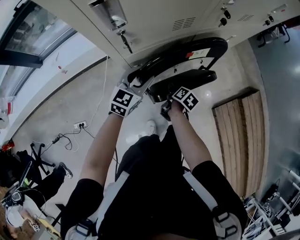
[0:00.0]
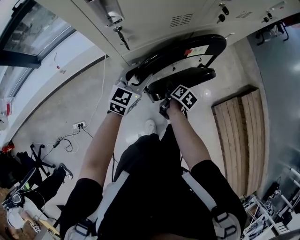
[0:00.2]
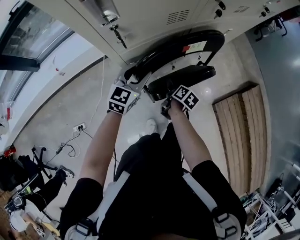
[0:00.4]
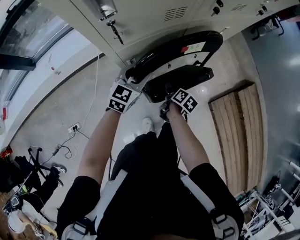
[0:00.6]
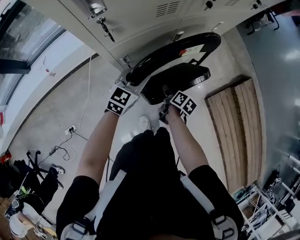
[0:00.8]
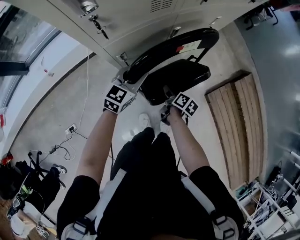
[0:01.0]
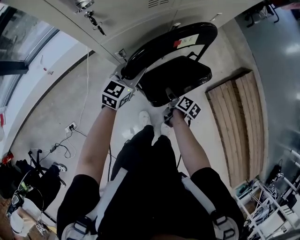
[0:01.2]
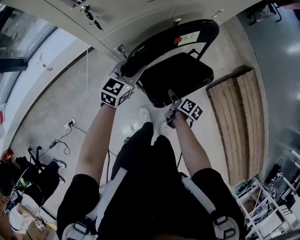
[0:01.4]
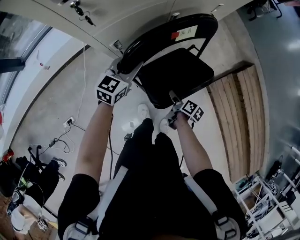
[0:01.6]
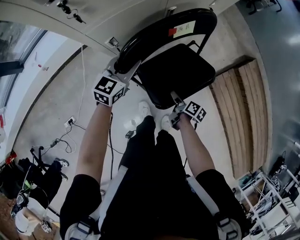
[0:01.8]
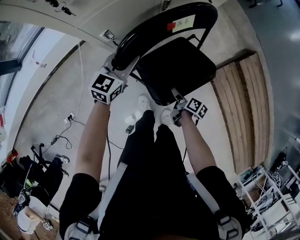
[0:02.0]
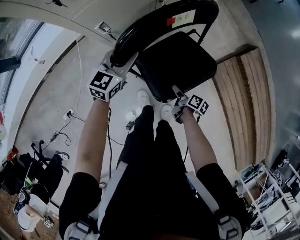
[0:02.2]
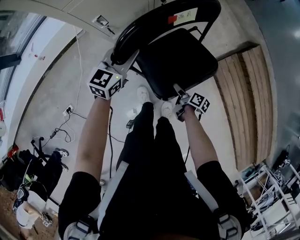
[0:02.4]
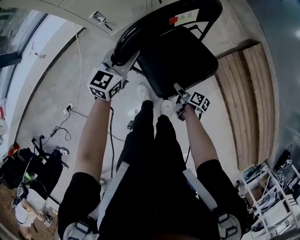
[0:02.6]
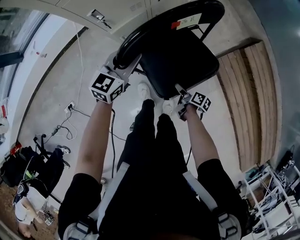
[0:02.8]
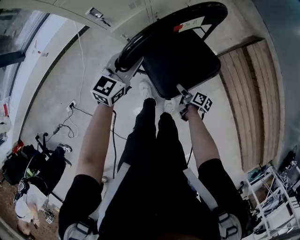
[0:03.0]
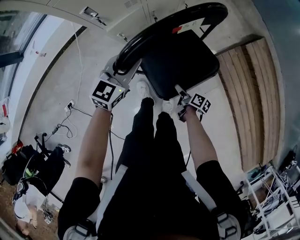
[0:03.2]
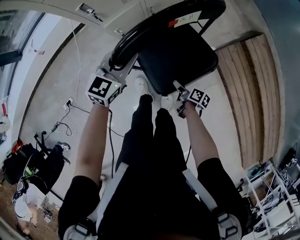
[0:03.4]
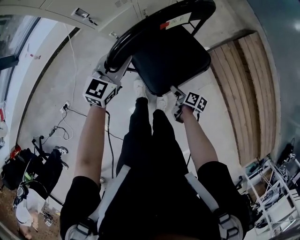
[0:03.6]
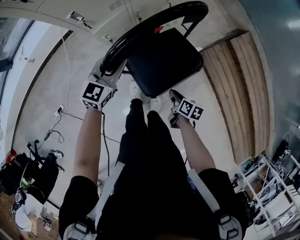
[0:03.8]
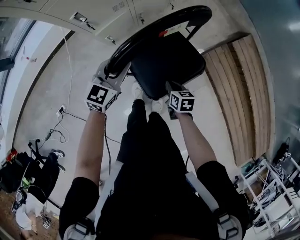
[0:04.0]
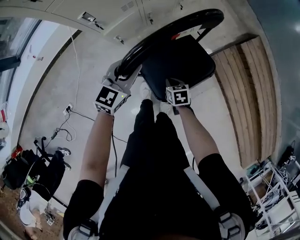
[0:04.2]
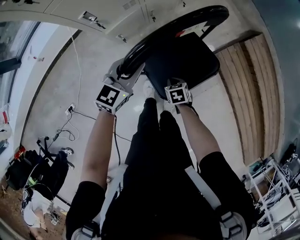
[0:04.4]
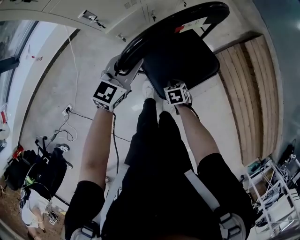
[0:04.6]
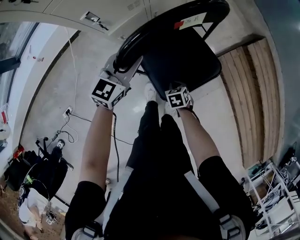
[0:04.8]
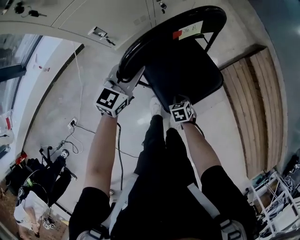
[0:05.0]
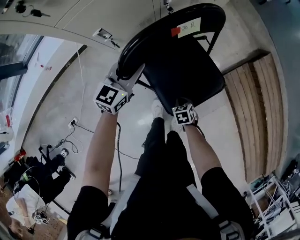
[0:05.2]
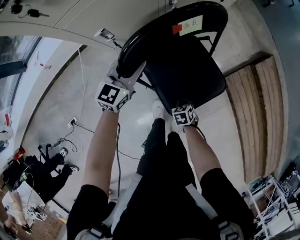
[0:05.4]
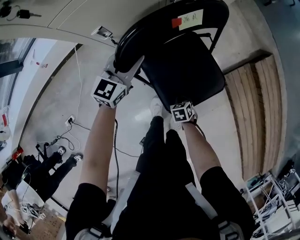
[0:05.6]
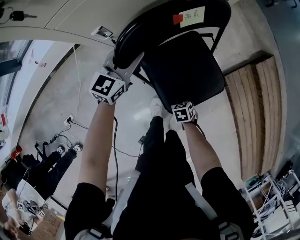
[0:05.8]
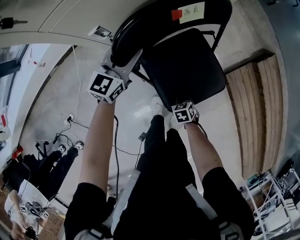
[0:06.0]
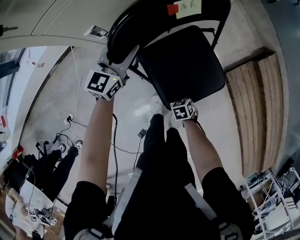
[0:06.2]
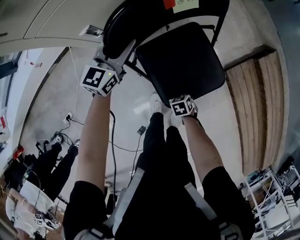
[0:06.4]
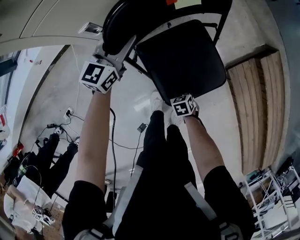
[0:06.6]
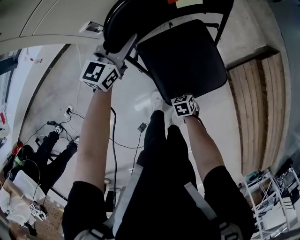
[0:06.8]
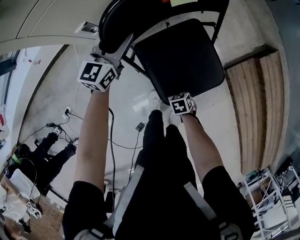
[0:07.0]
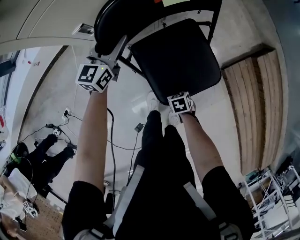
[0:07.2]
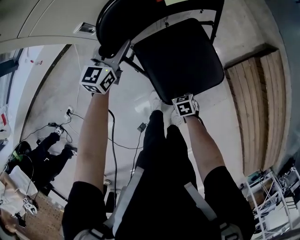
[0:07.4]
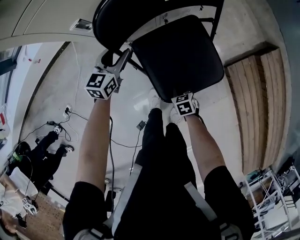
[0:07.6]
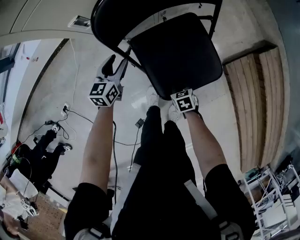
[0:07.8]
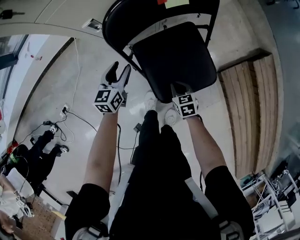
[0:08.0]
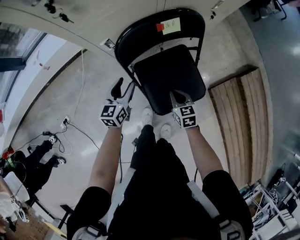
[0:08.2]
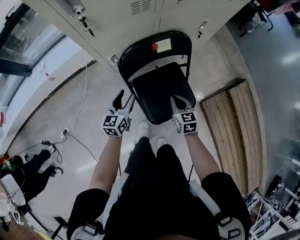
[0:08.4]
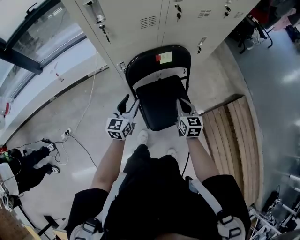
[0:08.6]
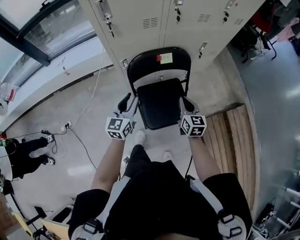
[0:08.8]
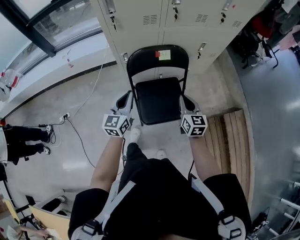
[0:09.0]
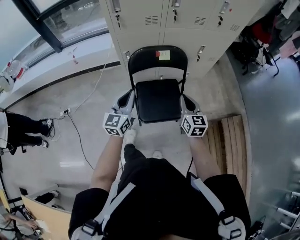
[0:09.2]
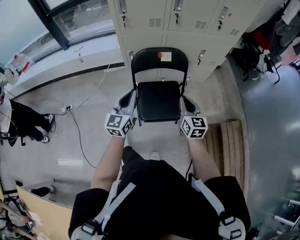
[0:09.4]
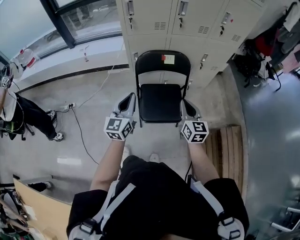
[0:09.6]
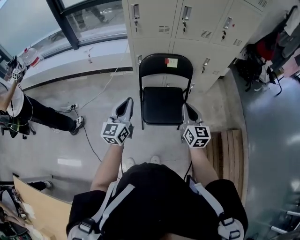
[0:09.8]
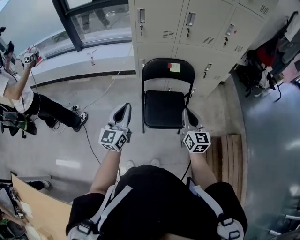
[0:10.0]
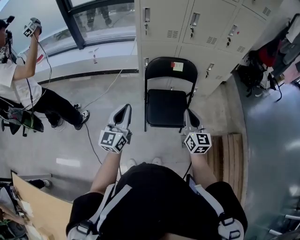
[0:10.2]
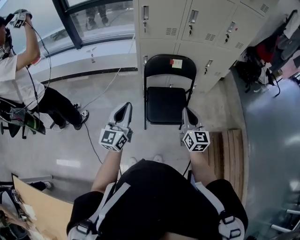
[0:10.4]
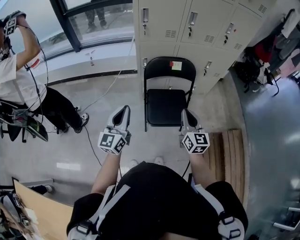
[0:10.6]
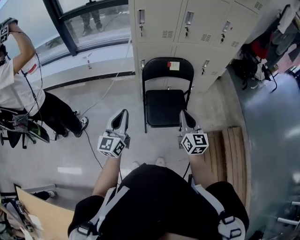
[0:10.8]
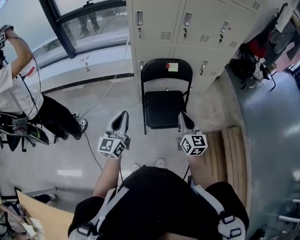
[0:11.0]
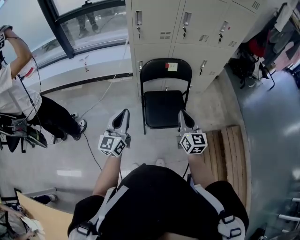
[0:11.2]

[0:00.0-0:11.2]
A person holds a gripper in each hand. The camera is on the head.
0:00.0 to 0:01.6: The right gripper moves backward, to the right and downward, roughly 20 cm. The left gripper goes roughly 5 cm to the right.
0:01.6 to 0:03.2: The right gripper travels backward, downward and to the right by roughly 20 cm; the left gripper goes about 15 cm backward and to the right.
0:03.2 to 0:04.8: The right gripper travels to the left and forward by approximately 10 cm, rotates around the line of its fingers by about 70 degrees, counterclockwise from behind, and closes its fingers; the left gripper ends up some 5 cm from where it was.
0:04.8 to 0:06.4: The left gripper changes place by approximately 20 cm. The right gripper travels downward by approximately 10 cm.
0:06.4 to 0:08.0: The left gripper shifts by about 15 cm, and turns by about 30 degrees, while the right gripper heads upward, covering about 5 cm, and rotates about 20 degrees.
0:08.0 to 0:09.6: The right gripper travels upward by about 50 cm, and points its fingers some 40 degrees further upward. Meanwhile the left gripper heads upward and backward, covering some 50 cm, turns by approximately 40 degrees, and closes up.
0:09.6 to 0:11.2: The two grippers go about 10 cm to the left and backward.

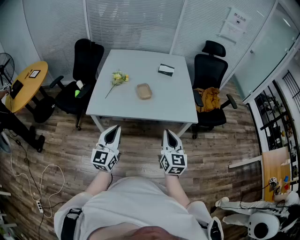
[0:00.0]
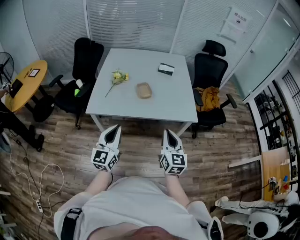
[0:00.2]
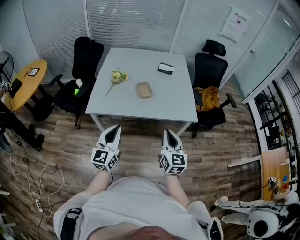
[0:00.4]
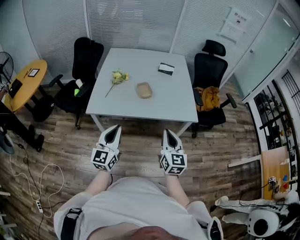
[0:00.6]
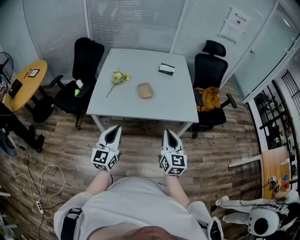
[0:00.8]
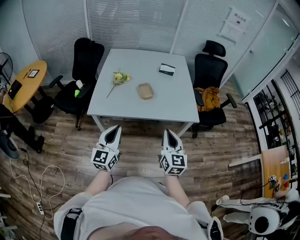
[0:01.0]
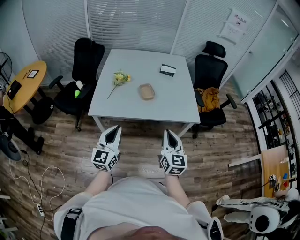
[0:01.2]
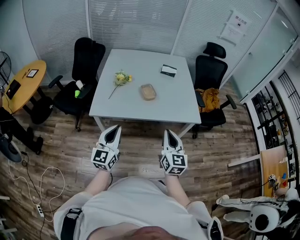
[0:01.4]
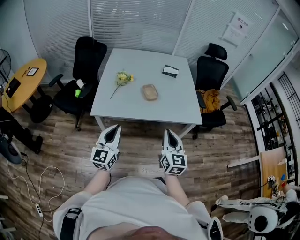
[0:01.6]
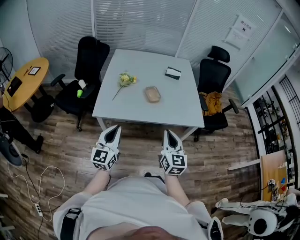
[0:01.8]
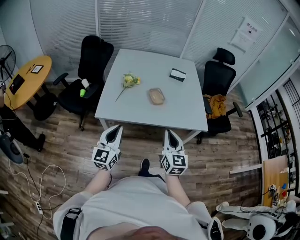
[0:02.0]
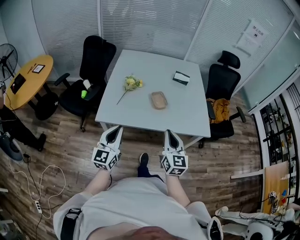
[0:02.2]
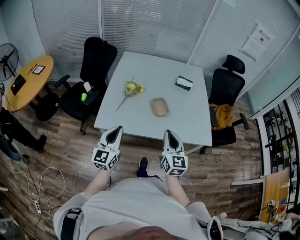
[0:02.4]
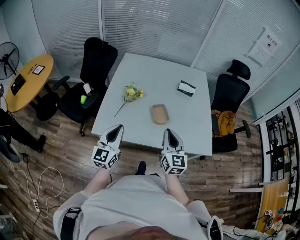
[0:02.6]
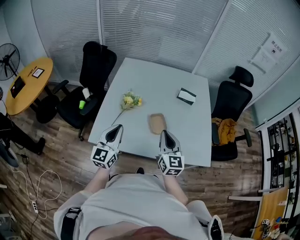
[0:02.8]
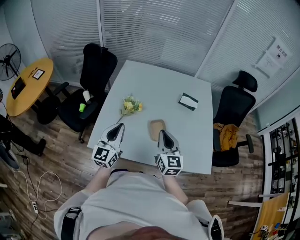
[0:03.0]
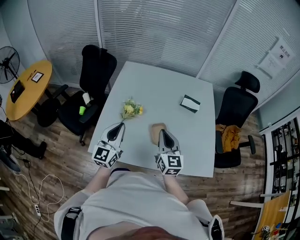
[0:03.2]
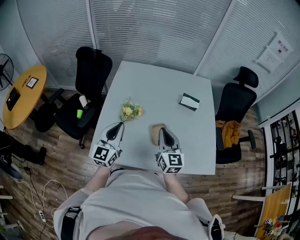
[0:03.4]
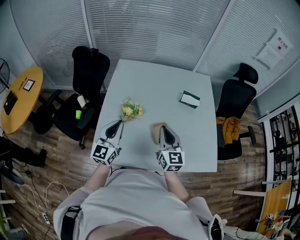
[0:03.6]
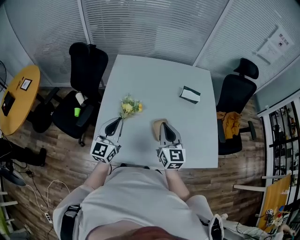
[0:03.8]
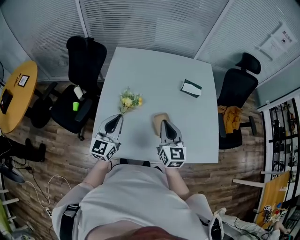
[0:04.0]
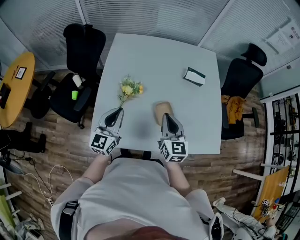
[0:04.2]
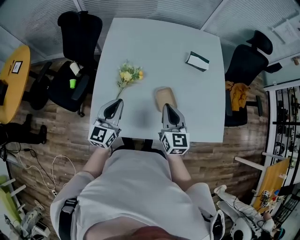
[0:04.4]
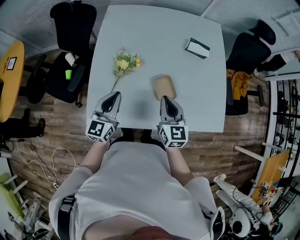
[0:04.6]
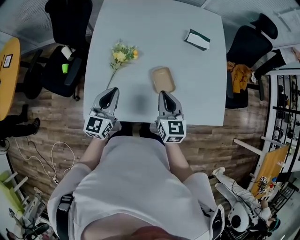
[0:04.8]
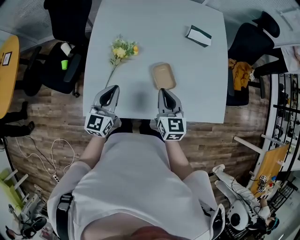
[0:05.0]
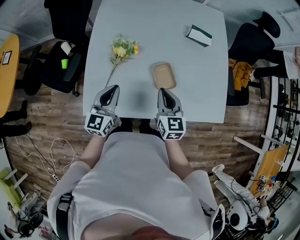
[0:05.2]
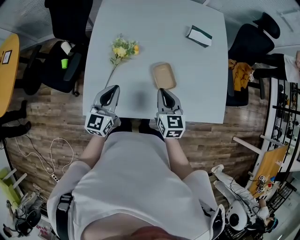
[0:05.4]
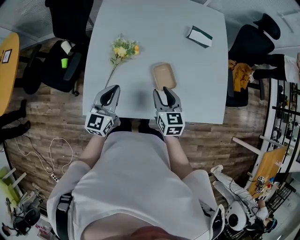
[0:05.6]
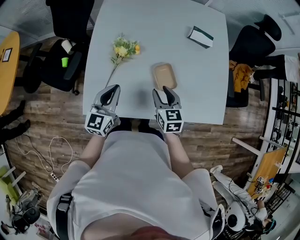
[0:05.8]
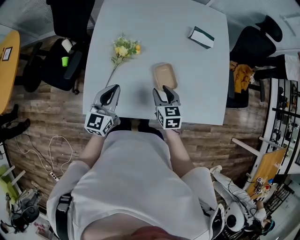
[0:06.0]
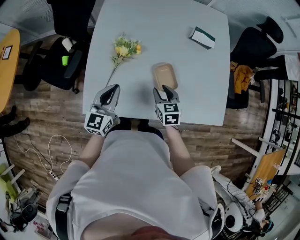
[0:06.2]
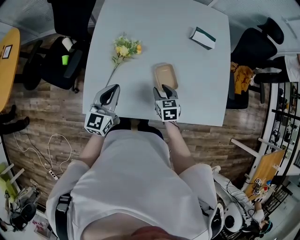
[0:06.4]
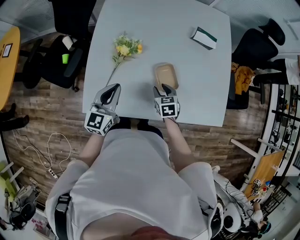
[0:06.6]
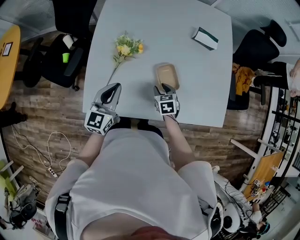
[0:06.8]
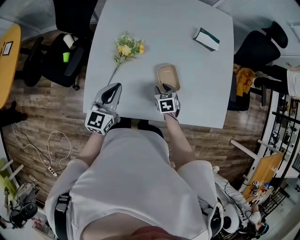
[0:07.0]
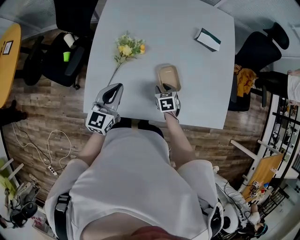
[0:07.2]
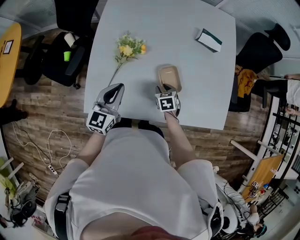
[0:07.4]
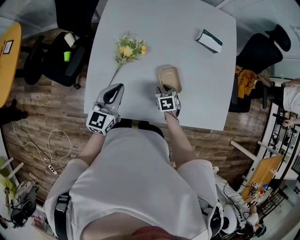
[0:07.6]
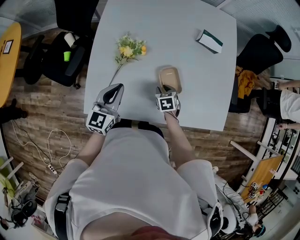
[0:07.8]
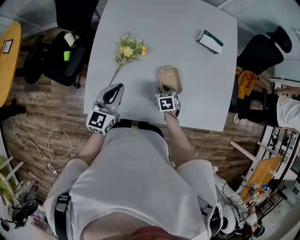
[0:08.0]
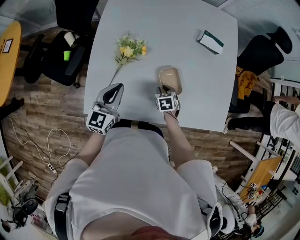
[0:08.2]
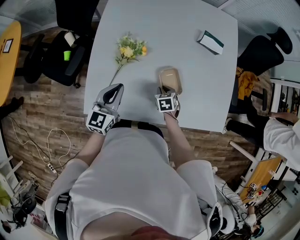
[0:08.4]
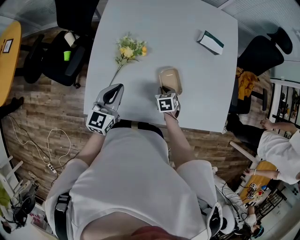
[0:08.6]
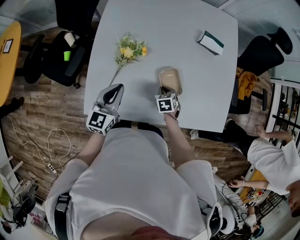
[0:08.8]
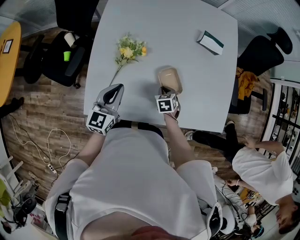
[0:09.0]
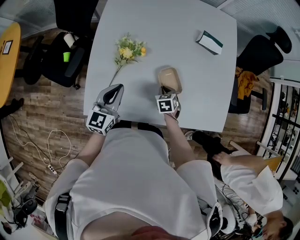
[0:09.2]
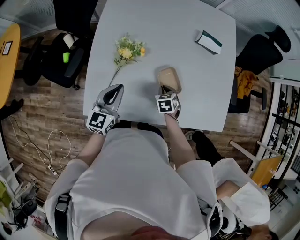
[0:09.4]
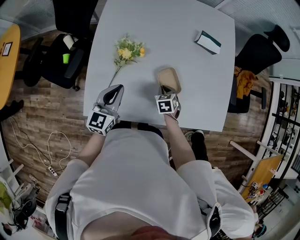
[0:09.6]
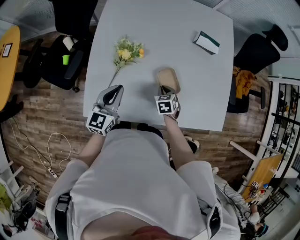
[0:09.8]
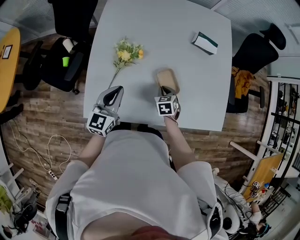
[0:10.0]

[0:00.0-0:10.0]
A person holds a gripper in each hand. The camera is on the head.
0:00.0 to 0:01.4: The two grippers go approximately 5 cm to the left.
0:01.4 to 0:02.8: Both grippers travel together forward, approximately 30 cm.
0:02.8 to 0:04.2: The two grippers go about 15 cm forward.
0:04.2 to 0:05.8: The left gripper heads downward, covering approximately 10 cm. The right gripper shifts roughly 15 cm downward, rotates roughly 20 degrees, and opens.
0:05.8 to 0:07.2: The right gripper moves downward, some 15 cm, and changes its angle by about 30 degrees.
0:07.2 to 0:08.6: The right gripper closes its fingers.
0:08.6 to 0:10.0: The grippers make only small movements.

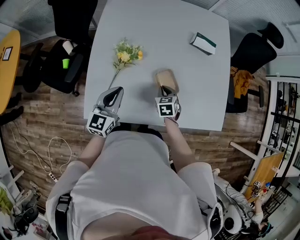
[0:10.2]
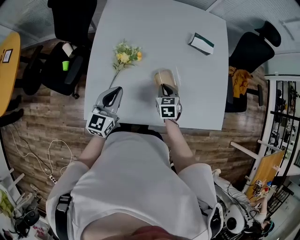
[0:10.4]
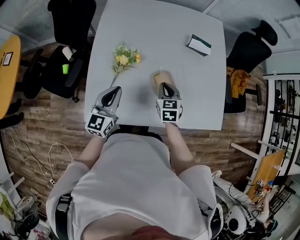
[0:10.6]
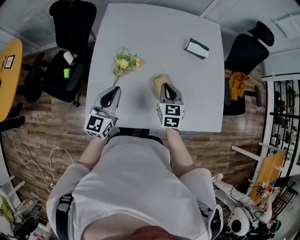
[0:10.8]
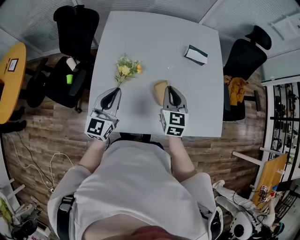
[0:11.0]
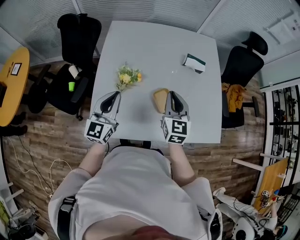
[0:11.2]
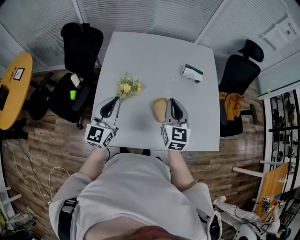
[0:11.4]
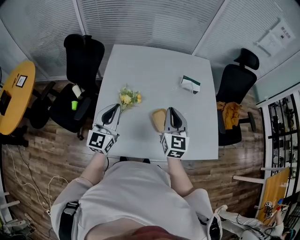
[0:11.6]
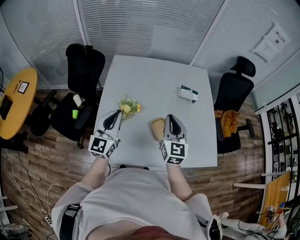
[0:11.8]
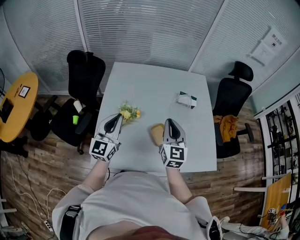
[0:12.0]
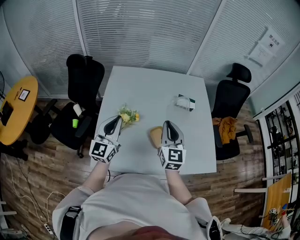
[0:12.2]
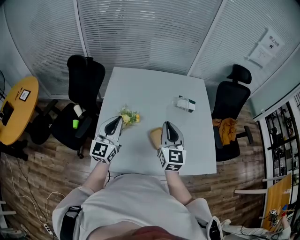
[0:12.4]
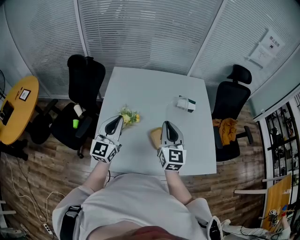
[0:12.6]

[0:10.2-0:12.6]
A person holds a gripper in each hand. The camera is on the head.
0:10.2 to 0:11.4: The right gripper is displaced upward by approximately 25 cm, and tilts its fingers about 40 degrees upward. Meanwhile the left gripper is displaced upward by roughly 15 cm.
0:11.4 to 0:12.6: The right gripper travels upward by roughly 5 cm. Meanwhile the left gripper changes place by about 5 cm.
